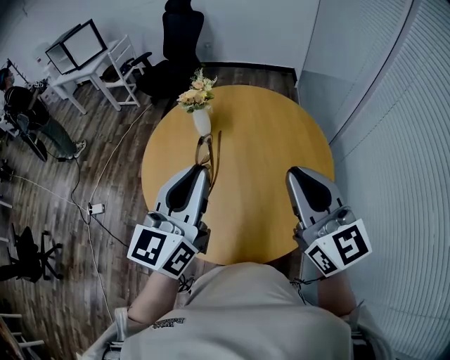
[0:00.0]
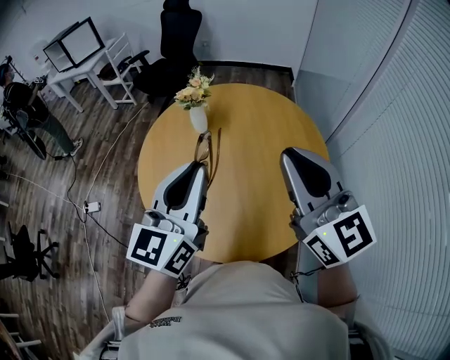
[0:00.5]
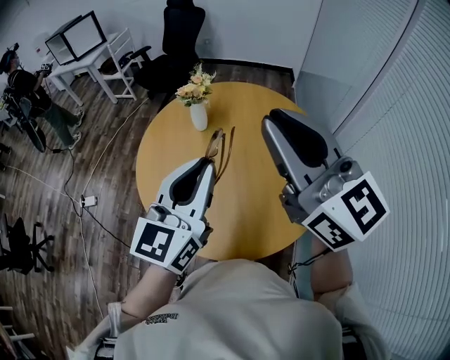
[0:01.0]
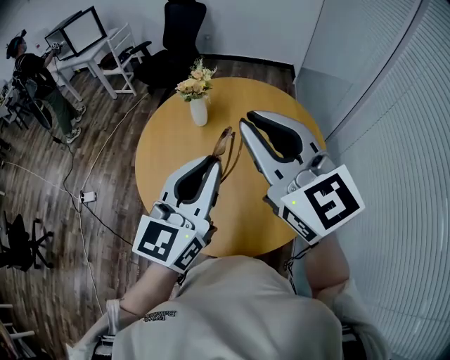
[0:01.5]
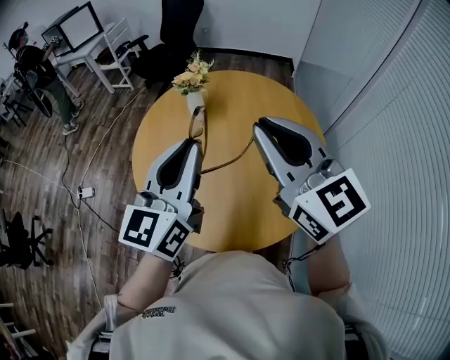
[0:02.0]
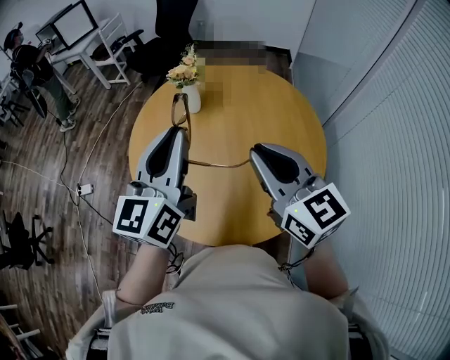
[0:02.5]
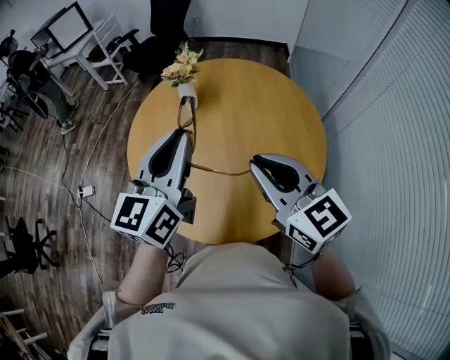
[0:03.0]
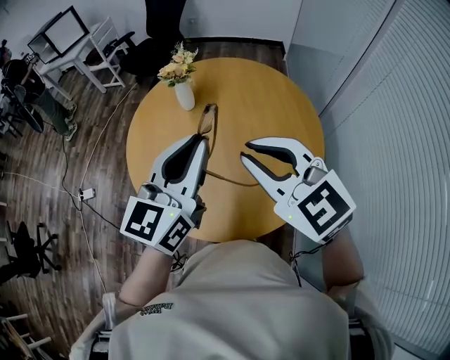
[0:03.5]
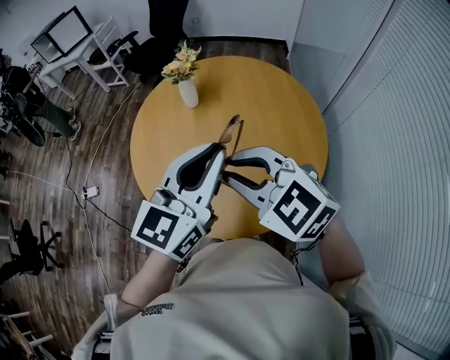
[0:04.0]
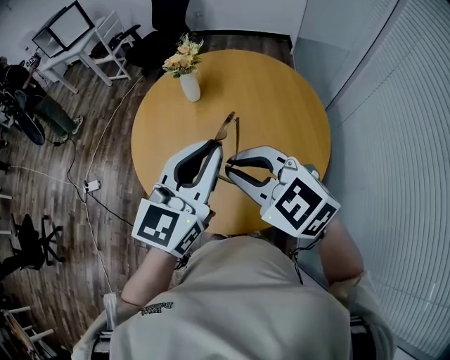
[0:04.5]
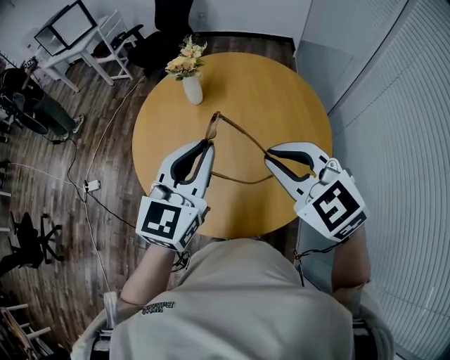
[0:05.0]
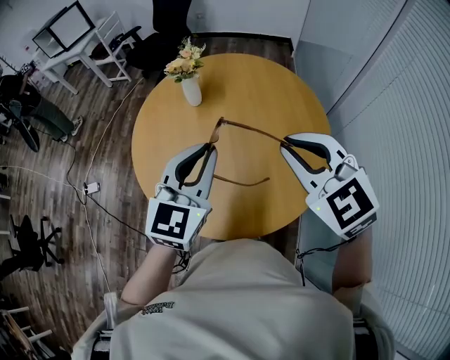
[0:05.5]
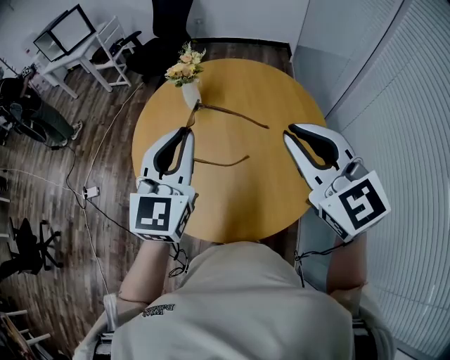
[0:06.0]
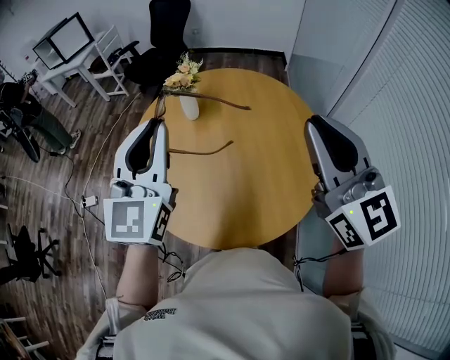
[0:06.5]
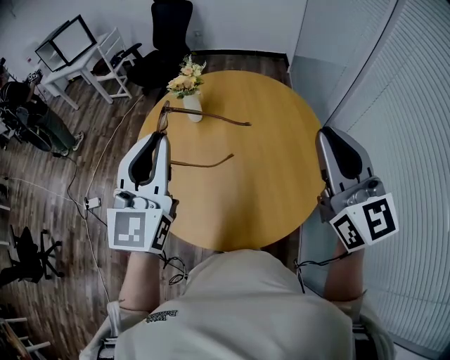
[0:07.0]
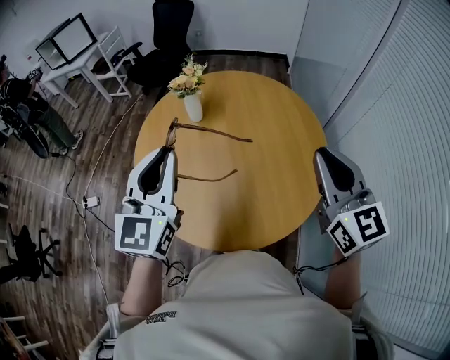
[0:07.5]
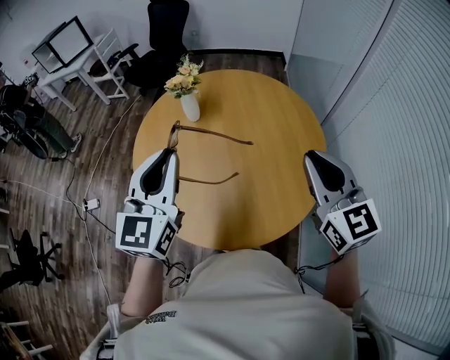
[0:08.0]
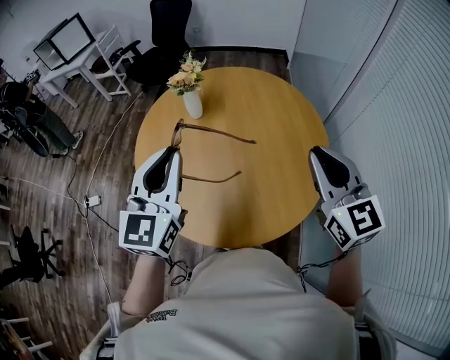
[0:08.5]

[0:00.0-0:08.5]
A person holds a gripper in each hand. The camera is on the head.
0:00.0 to 0:02.0: The right gripper goes about 5 cm to the left.
0:02.0 to 0:04.0: The right gripper heads downward, backward and to the left, covering roughly 15 cm, and changes its angle by approximately 40 degrees, while the left gripper shifts roughly 5 cm to the right.
0:04.0 to 0:06.5: The left gripper goes approximately 15 cm to the left, forward and upward, and turns by about 30 degrees. Meanwhile the right gripper moves to the right and upward, some 20 cm, and angles its fingers upward, by roughly 30 degrees.
0:06.5 to 0:08.5: The two grippers go some 10 cm downward.

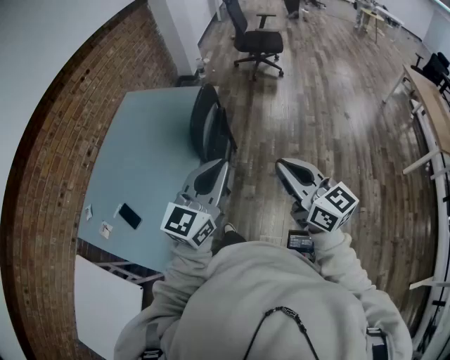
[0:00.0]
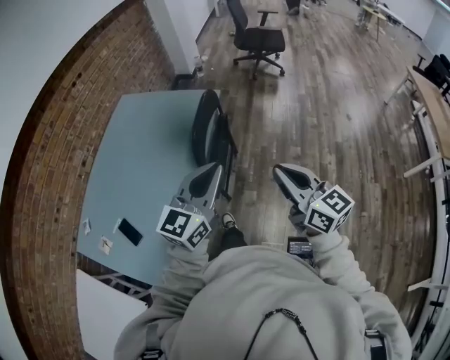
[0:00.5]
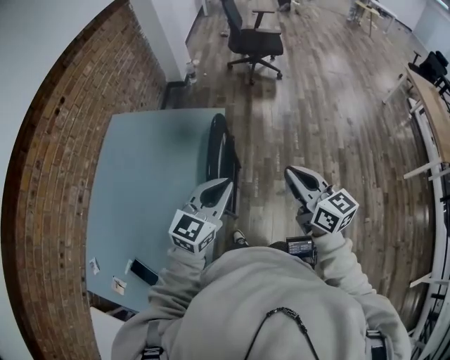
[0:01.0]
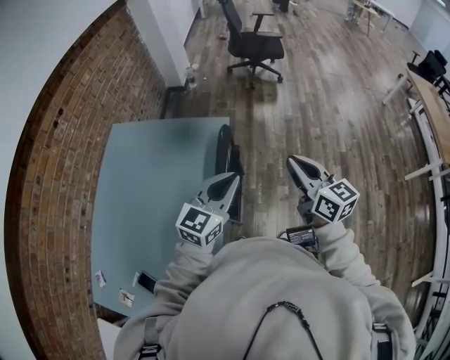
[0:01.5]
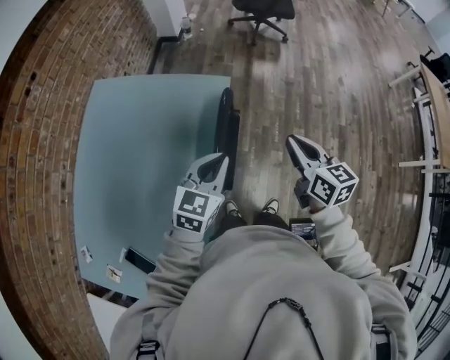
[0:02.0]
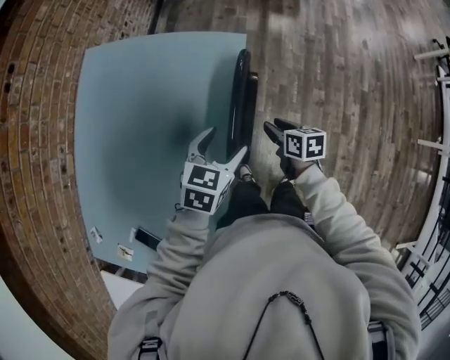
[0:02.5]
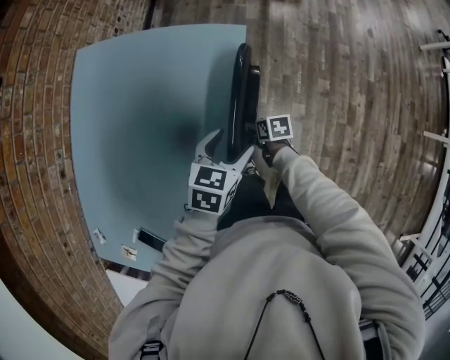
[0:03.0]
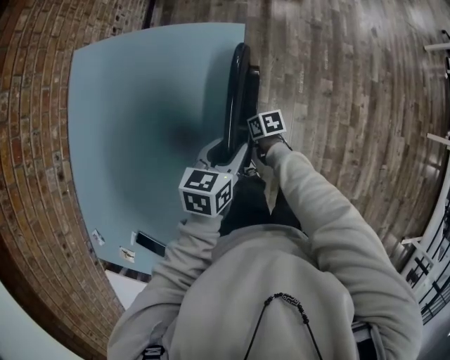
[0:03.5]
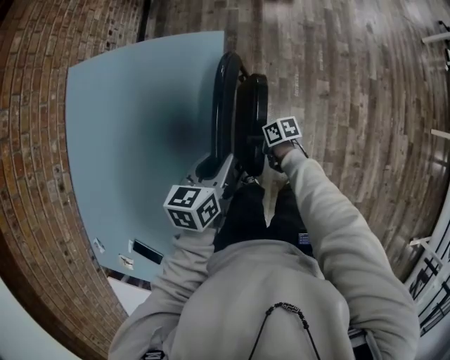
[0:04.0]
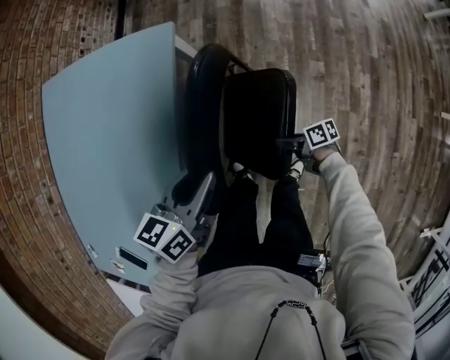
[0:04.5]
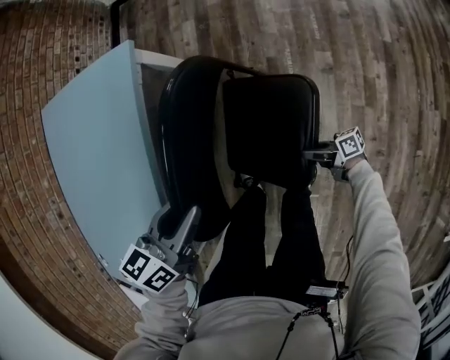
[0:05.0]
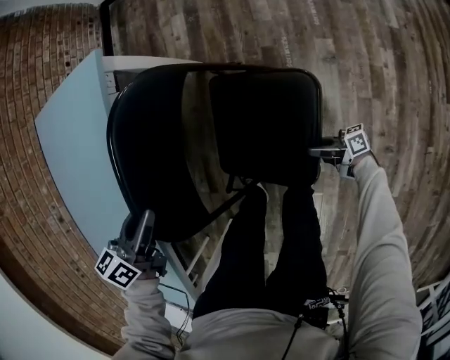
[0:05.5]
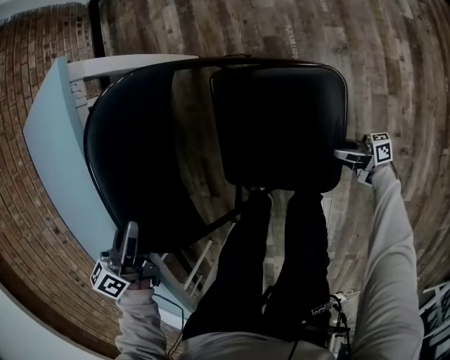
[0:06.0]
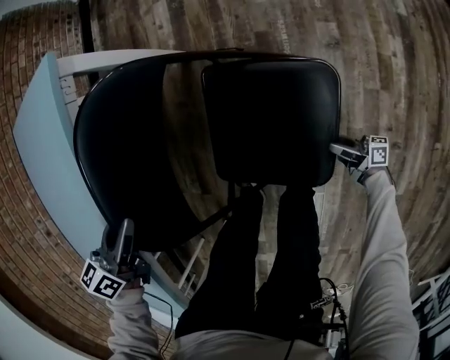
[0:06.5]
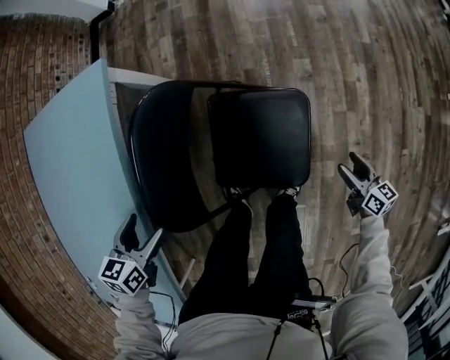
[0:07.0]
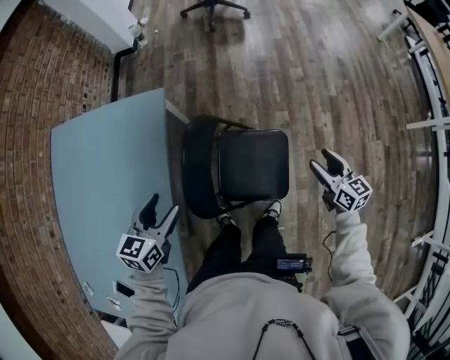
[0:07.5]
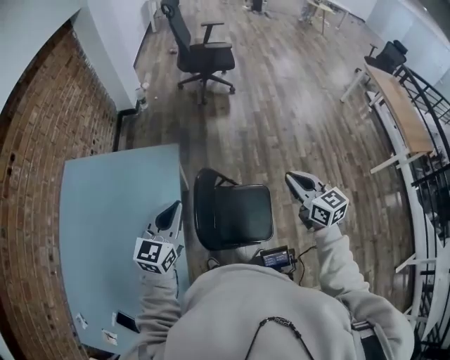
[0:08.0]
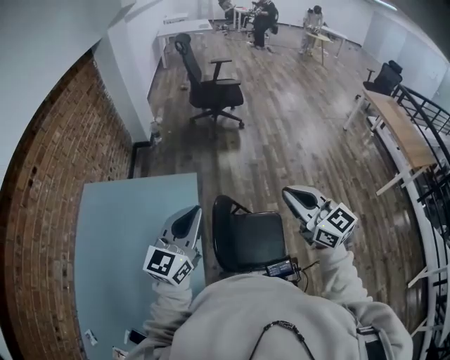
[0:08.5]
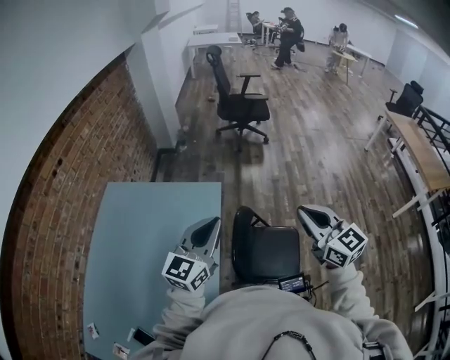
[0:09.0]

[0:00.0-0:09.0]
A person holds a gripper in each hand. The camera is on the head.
0:00.0 to 0:02.0: The pair of grippers is taken forward, roughly 40 cm. The left gripper shifts approximately 20 cm downward, and turns by some 30 degrees. The right gripper rotates about 30 degrees.
0:02.0 to 0:04.5: The left gripper shifts about 25 cm downward and to the right, turns by some 30 degrees, and opens and closes again. Meanwhile the right gripper heads downward, covering approximately 50 cm, swivels about 60 degrees, and opens up.
0:04.5 to 0:07.0: The left gripper shifts some 15 cm downward, rotates about 30 degrees, and opens its fingers. The right gripper moves some 25 cm downward and comes back, turns by roughly 50 degrees, and opens up.
0:07.0 to 0:09.0: The right gripper heads upward and to the left, covering about 80 cm, rolls counterclockwise, seen from behind, by roughly 50 degrees, and closes up. Meanwhile the left gripper travels upward by some 50 cm, points its fingers about 60 degrees further upward, and closes.

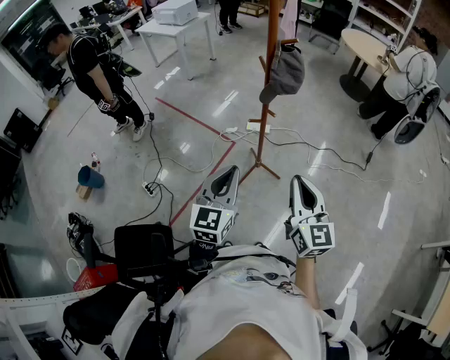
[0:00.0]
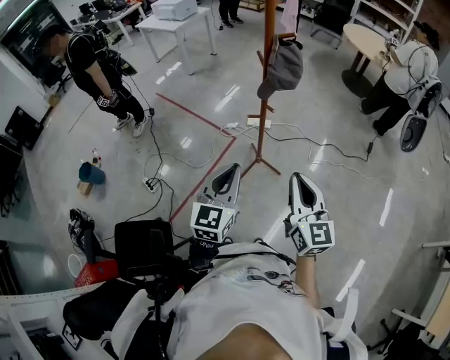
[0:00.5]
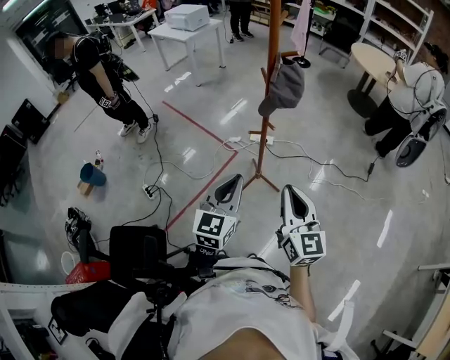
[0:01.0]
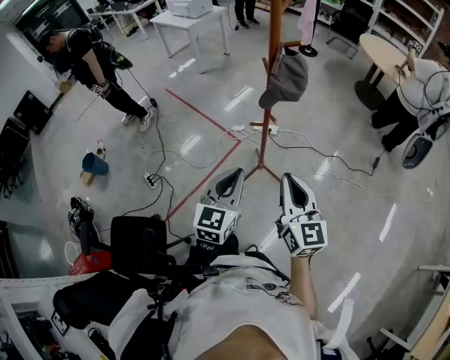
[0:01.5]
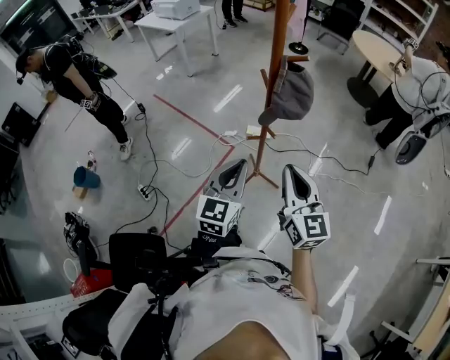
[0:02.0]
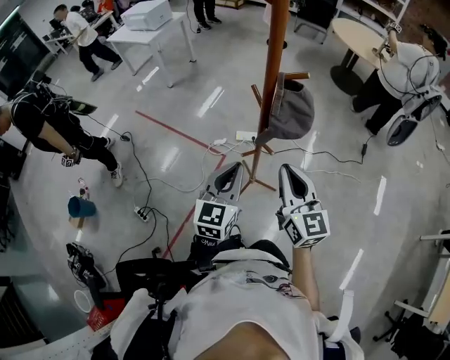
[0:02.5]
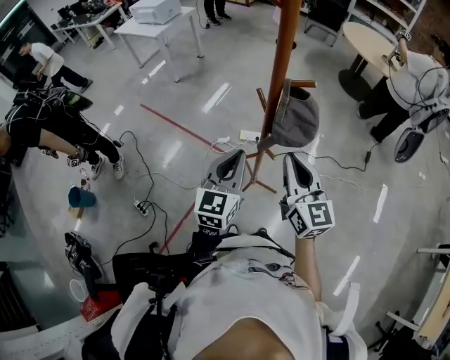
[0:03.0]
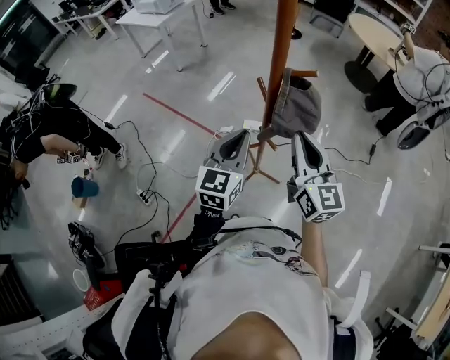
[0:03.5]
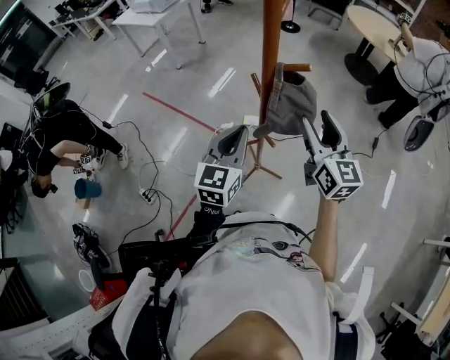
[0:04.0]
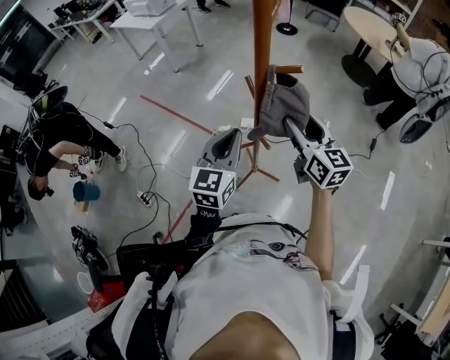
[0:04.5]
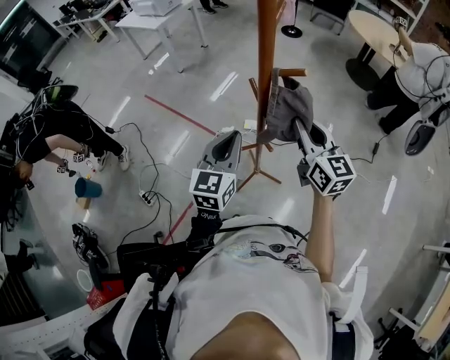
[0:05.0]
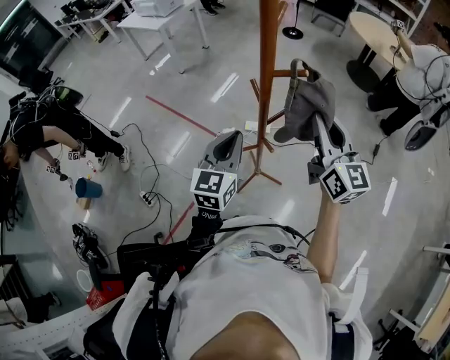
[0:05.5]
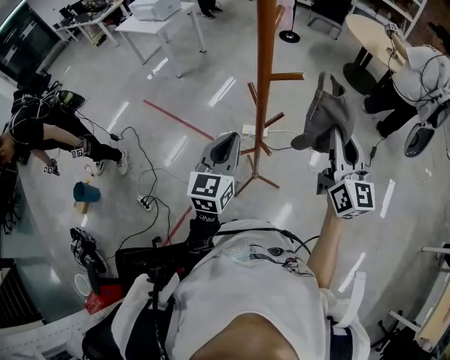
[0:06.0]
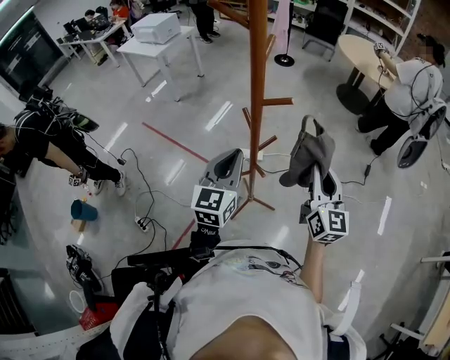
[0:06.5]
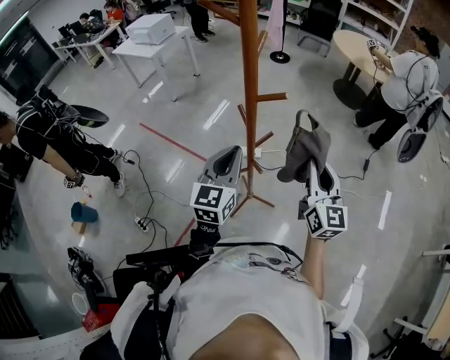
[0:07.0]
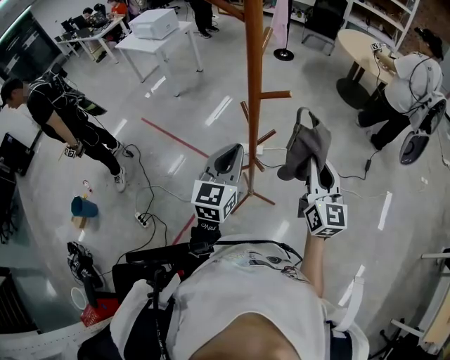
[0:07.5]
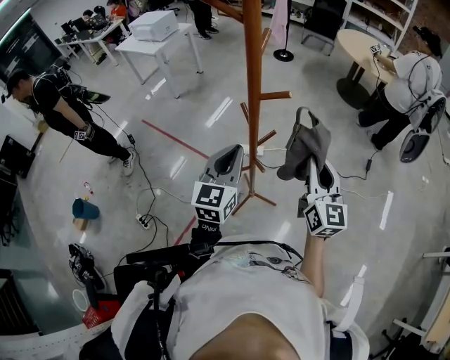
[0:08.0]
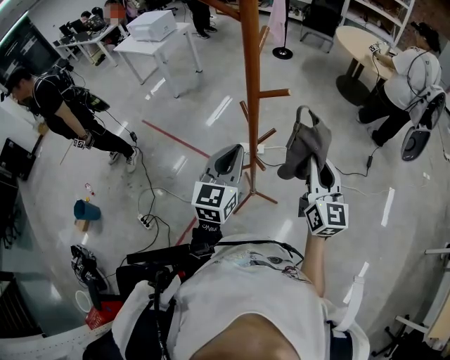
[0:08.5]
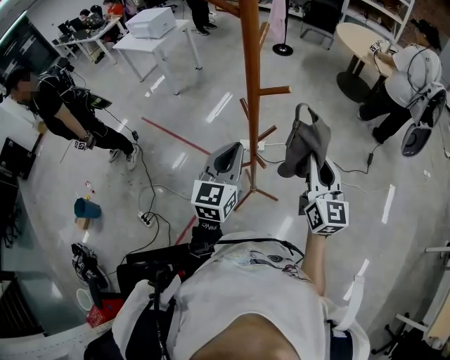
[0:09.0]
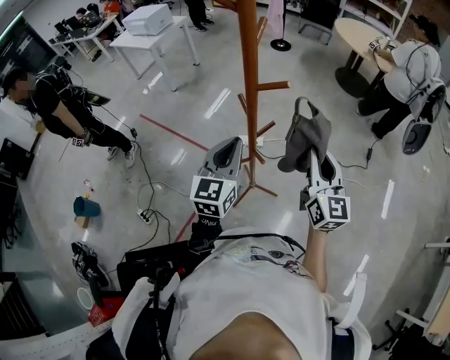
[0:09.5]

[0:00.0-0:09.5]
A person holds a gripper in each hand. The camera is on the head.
0:00.0 to 0:02.0: Both grippers move forward, roughly 15 cm.
0:02.0 to 0:04.0: Both grippers travel together forward, some 20 cm. The right gripper opens.
0:04.0 to 0:05.5: The right gripper closes.
0:05.5 to 0:07.5: The right gripper changes place by some 10 cm.
0:07.5 to 0:09.5: Both grippers stay about where they are.
